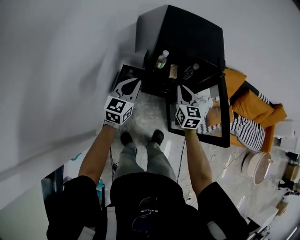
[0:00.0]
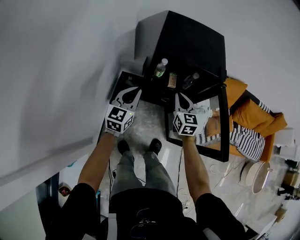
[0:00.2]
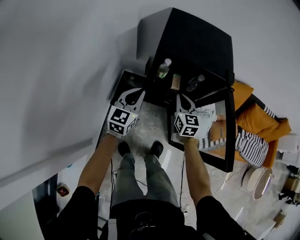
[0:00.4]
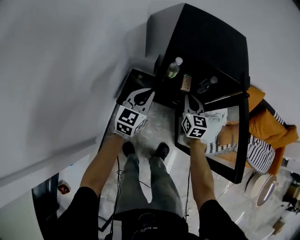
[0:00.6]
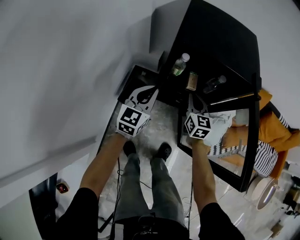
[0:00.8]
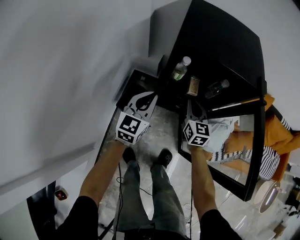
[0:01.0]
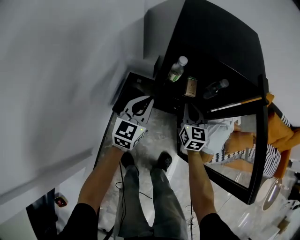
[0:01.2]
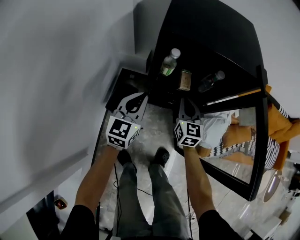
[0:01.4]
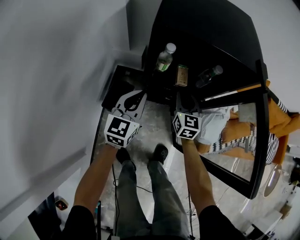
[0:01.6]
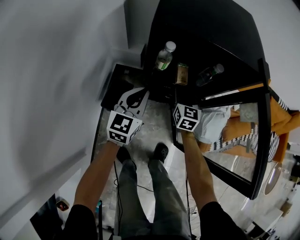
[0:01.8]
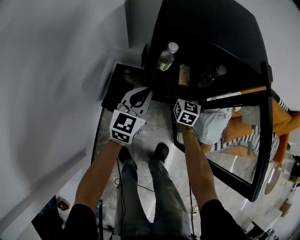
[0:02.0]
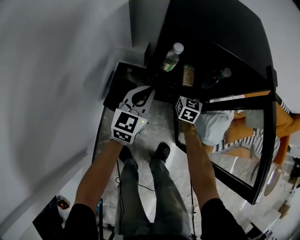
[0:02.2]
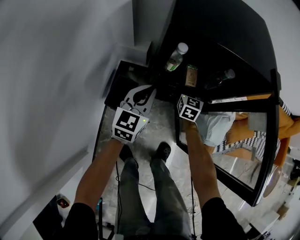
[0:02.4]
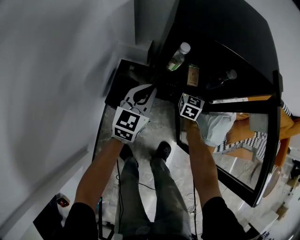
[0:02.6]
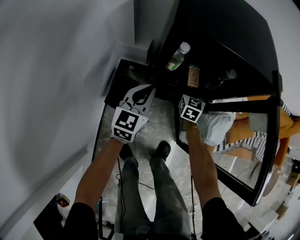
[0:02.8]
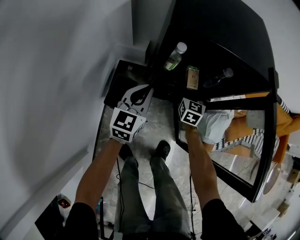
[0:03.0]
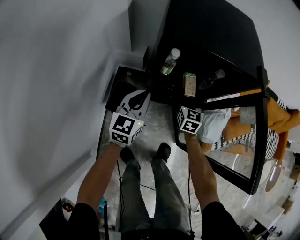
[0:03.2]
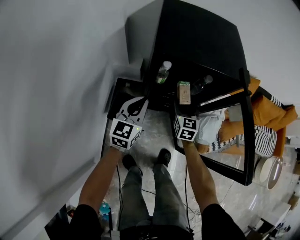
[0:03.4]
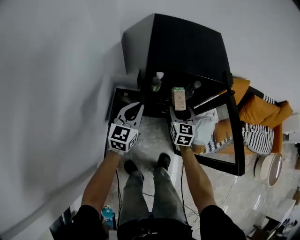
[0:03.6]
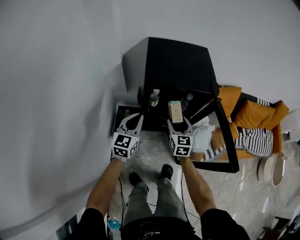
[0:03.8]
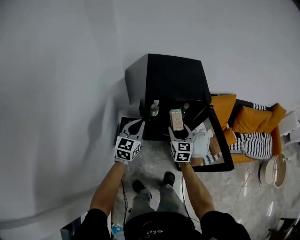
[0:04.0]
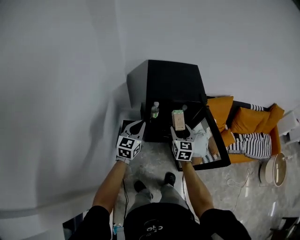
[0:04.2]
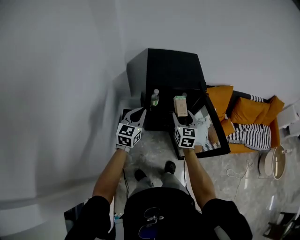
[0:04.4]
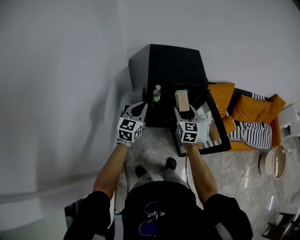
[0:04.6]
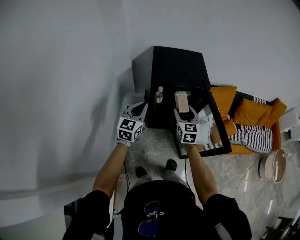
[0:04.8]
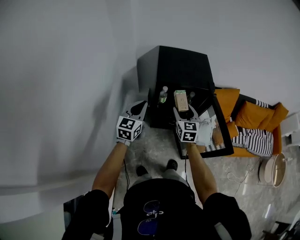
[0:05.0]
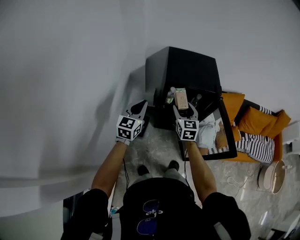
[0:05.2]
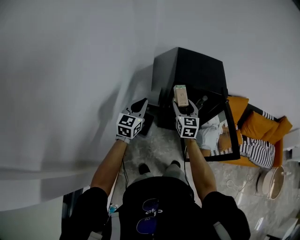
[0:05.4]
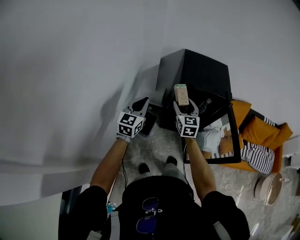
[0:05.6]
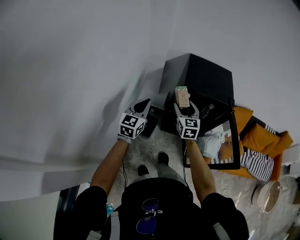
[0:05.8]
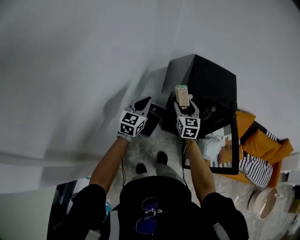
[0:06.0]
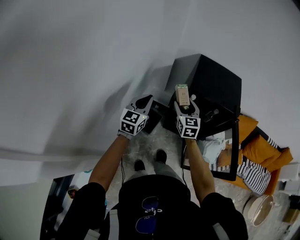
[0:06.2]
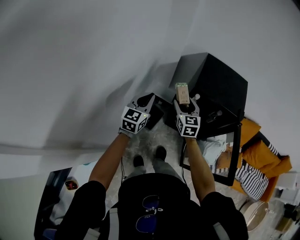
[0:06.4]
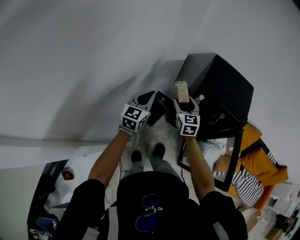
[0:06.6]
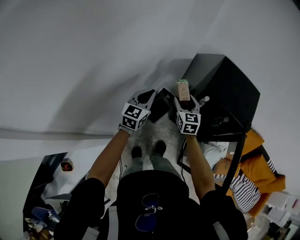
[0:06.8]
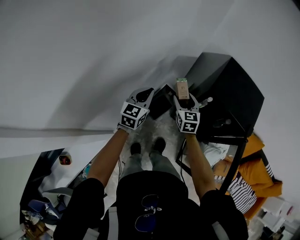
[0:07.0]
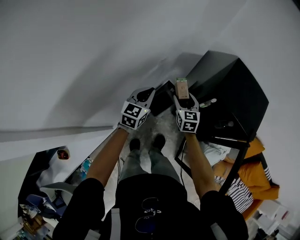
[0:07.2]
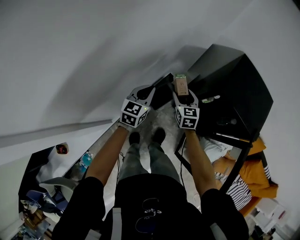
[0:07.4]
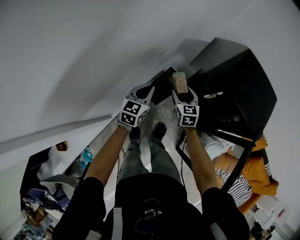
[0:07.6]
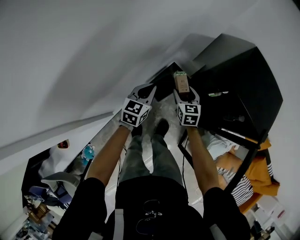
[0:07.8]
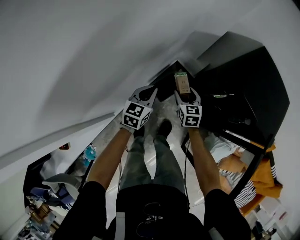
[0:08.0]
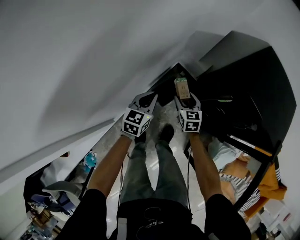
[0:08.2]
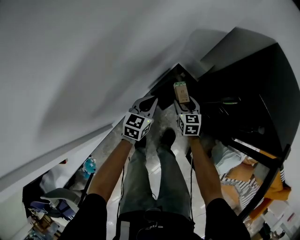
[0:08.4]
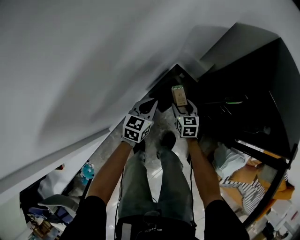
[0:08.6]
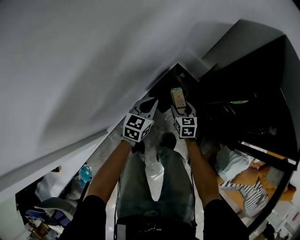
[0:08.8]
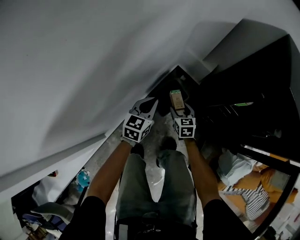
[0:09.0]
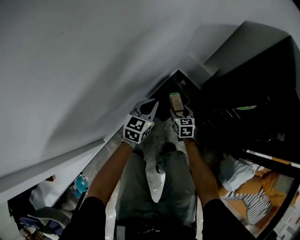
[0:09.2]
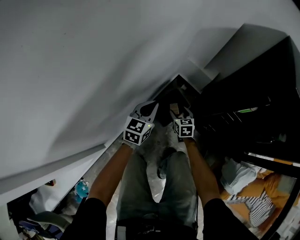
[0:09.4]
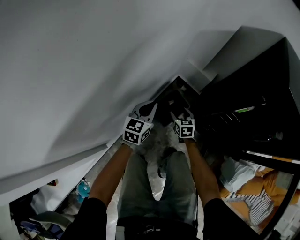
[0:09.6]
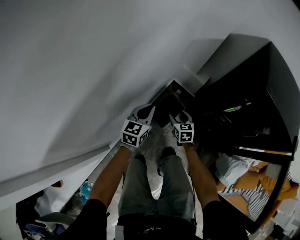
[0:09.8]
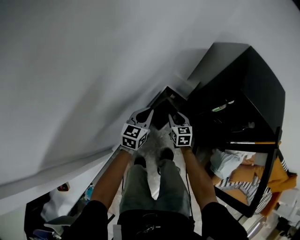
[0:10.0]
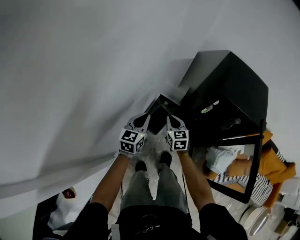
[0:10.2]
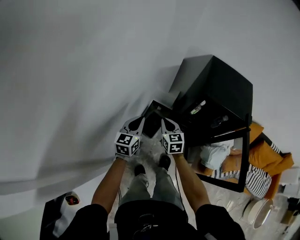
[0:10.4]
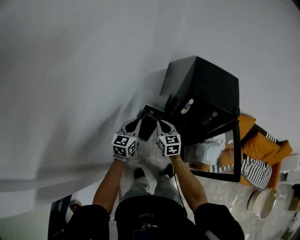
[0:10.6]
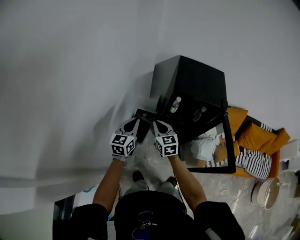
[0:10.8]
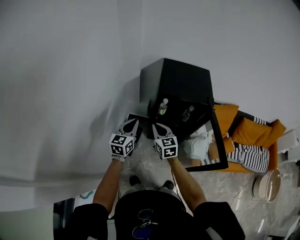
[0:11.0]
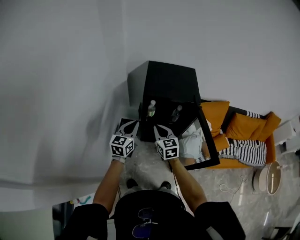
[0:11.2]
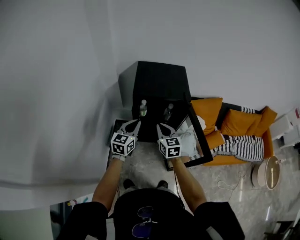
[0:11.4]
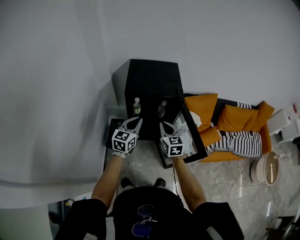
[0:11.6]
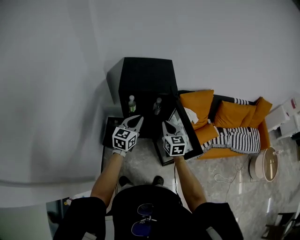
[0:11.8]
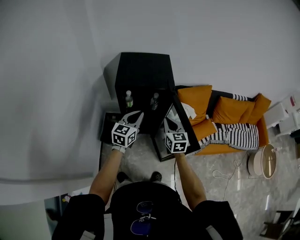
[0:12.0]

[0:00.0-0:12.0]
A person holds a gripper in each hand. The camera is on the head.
0:00.0 to 0:01.6: Both grippers move downward and forward, about 25 cm.
0:01.6 to 0:03.0: The right gripper goes about 10 cm forward and downward, and opens its fingers.
0:03.0 to 0:04.4: The right gripper goes about 40 cm upward and backward. Meanwhile the left gripper heads upward, covering approximately 30 cm.
0:04.4 to 0:06.0: Both grippers travel together to the left, some 20 cm. The right gripper turns by approximately 20 degrees.
0:06.0 to 0:07.6: The left gripper moves downward, about 20 cm, and turns by approximately 30 degrees, while the right gripper heads downward and to the left, covering about 20 cm, and swivels some 30 degrees.
0:07.6 to 0:09.0: Both grippers travel together downward, approximately 35 cm.
0:09.0 to 0:10.4: The grippers both shift upward by approximately 40 cm. The right gripper closes up.
0:10.4 to 0:12.0: Both grippers are carried approximately 40 cm. The right gripper changes its angle by about 30 degrees. Meanwhile the left gripper rotates some 30 degrees.

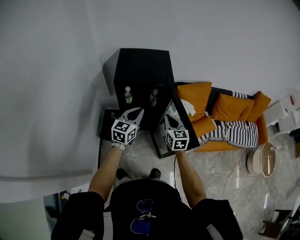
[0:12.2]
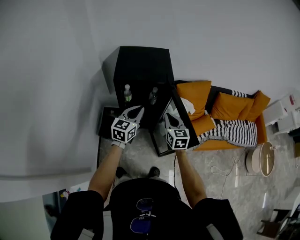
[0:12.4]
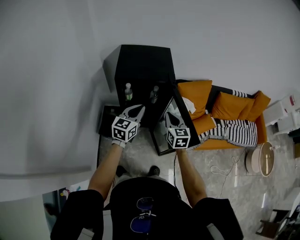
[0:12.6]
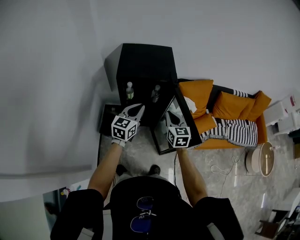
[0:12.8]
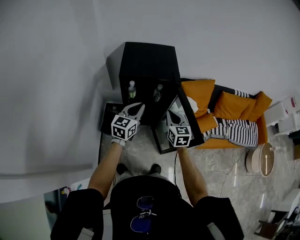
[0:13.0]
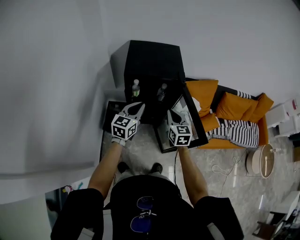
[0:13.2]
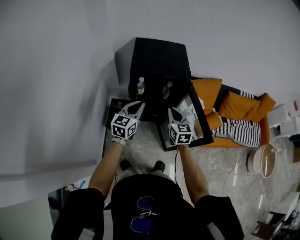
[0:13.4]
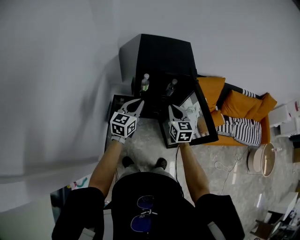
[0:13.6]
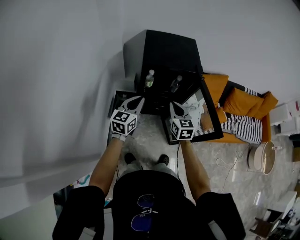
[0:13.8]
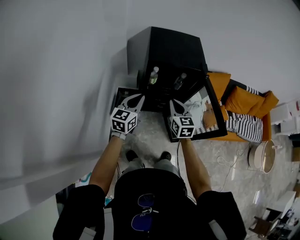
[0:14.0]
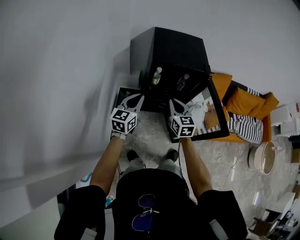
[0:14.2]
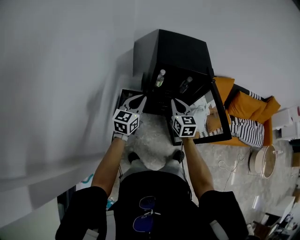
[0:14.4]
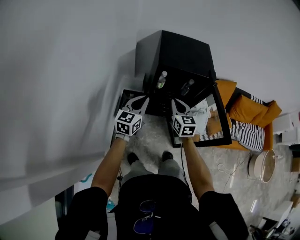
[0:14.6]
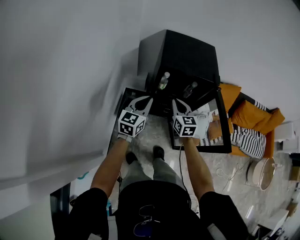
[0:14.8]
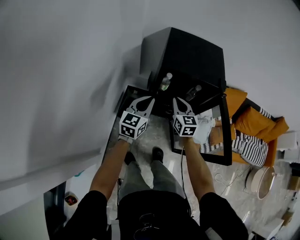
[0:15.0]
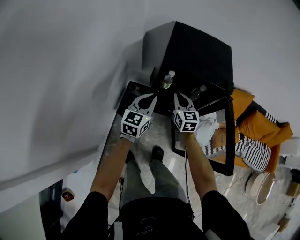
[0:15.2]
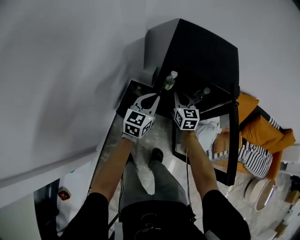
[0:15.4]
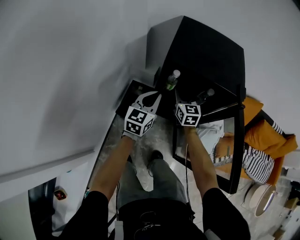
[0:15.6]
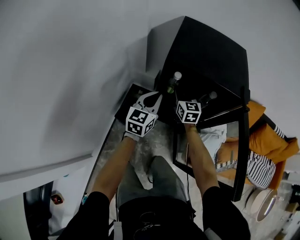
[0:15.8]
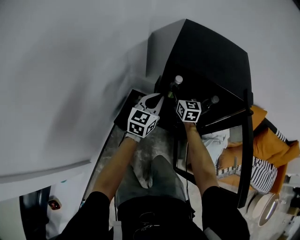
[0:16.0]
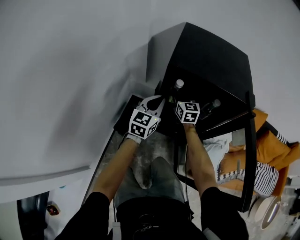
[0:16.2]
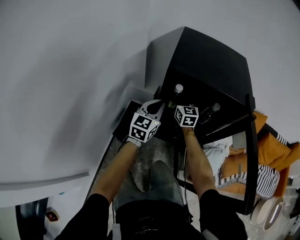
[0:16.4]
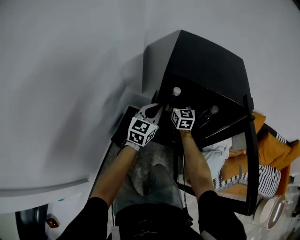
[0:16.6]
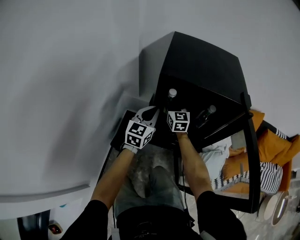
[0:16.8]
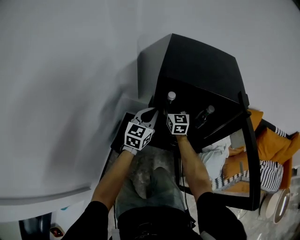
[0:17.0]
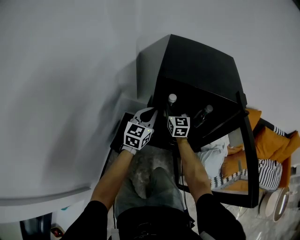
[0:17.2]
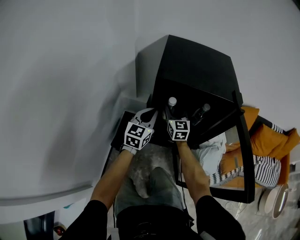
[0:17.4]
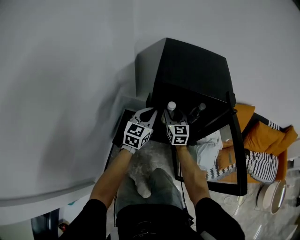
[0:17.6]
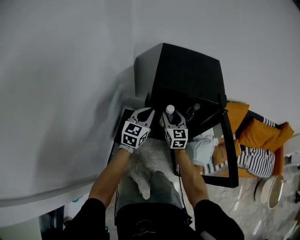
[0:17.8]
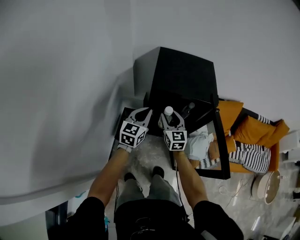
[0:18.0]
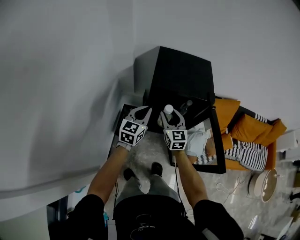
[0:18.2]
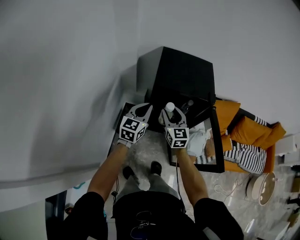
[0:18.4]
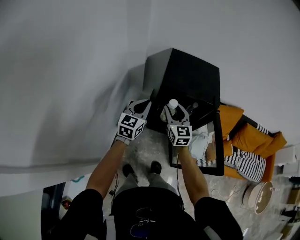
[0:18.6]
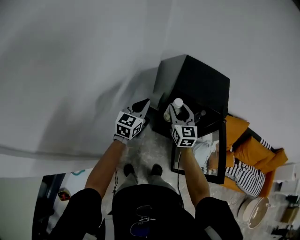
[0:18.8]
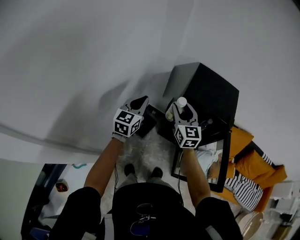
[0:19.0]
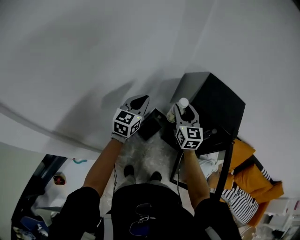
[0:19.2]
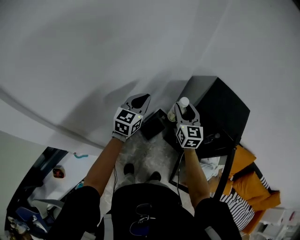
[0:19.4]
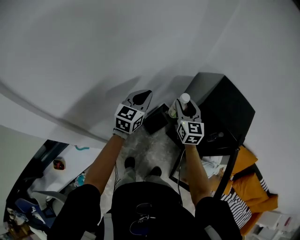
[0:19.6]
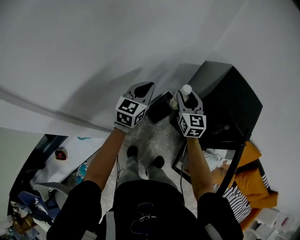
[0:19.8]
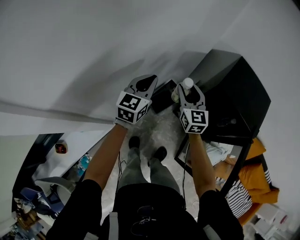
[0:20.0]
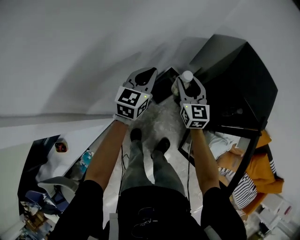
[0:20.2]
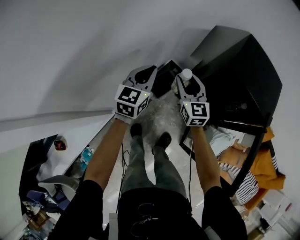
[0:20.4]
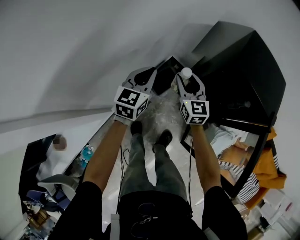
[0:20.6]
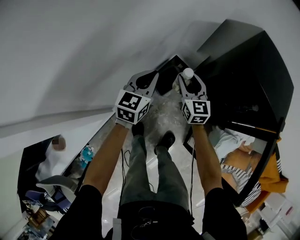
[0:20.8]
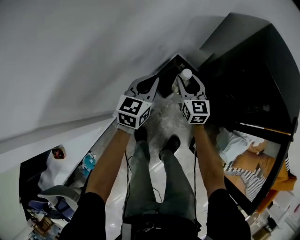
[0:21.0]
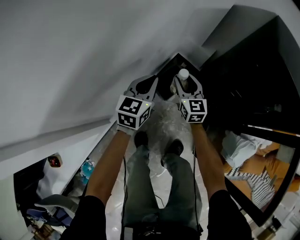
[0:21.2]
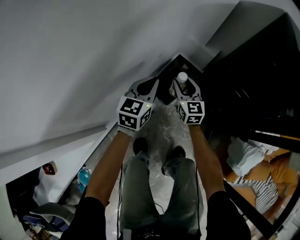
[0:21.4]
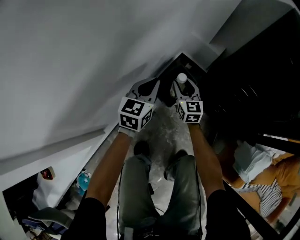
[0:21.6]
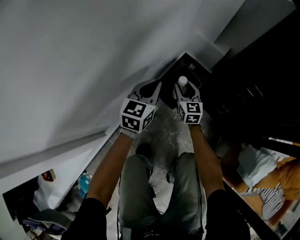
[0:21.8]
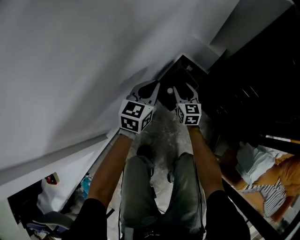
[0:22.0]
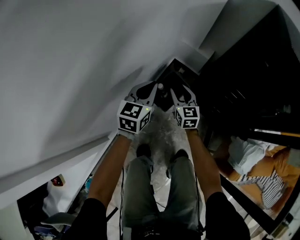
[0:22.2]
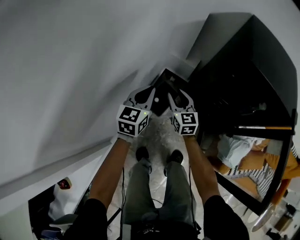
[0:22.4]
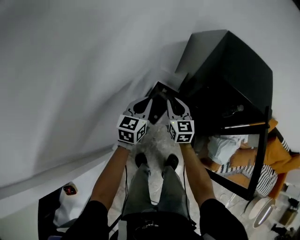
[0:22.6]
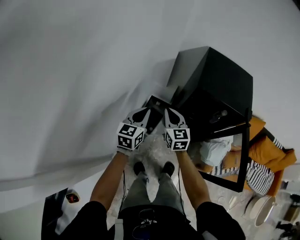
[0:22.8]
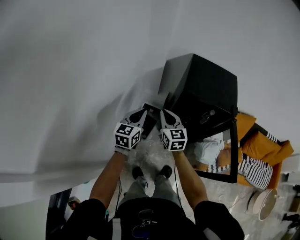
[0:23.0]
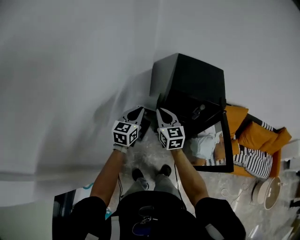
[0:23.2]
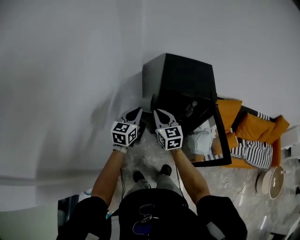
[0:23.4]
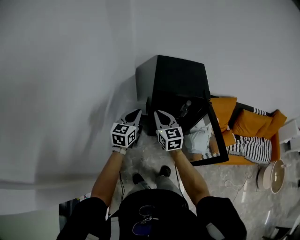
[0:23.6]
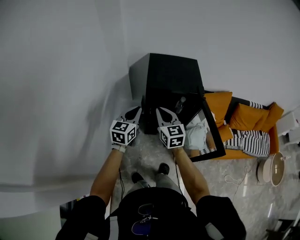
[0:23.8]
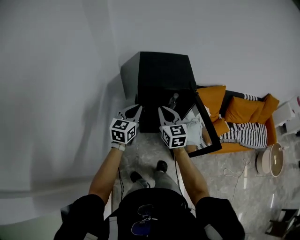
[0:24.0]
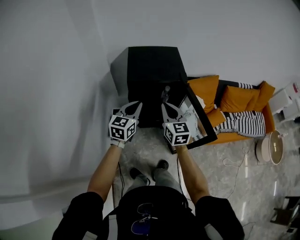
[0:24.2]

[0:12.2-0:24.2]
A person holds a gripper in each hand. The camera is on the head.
0:12.2 to 0:13.8: Both grippers travel together to the left, some 15 cm.
0:13.8 to 0:15.2: The right gripper travels forward, downward and to the left by approximately 20 cm. The left gripper heads forward and downward, covering some 10 cm.
0:15.2 to 0:16.6: The right gripper heads forward and downward, covering roughly 20 cm, and opens up. Meanwhile the left gripper heads downward and forward, covering roughly 20 cm.
0:16.6 to 0:18.2: The two grippers go some 25 cm upward and backward.
0:18.2 to 0:19.8: The left gripper moves about 25 cm, and turns by some 30 degrees, while the right gripper moves approximately 25 cm, and rotates some 30 degrees.
0:19.8 to 0:21.2: The grippers both shift downward by some 40 cm.
0:21.2 to 0:22.6: The grippers both shift upward by about 20 cm. The right gripper closes.
0:22.6 to 0:24.2: The left gripper changes place by some 35 cm, and swivels roughly 30 degrees; the right gripper ends up approximately 40 cm from where it was, and changes its angle by approximately 30 degrees.
